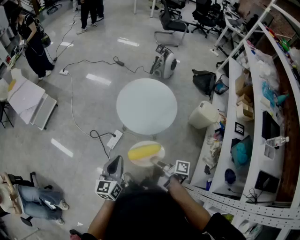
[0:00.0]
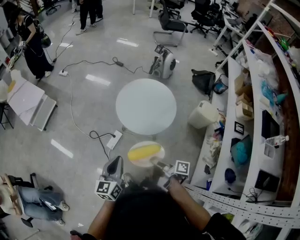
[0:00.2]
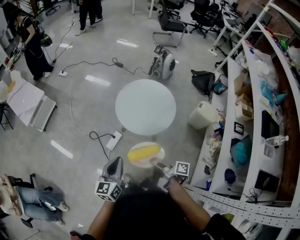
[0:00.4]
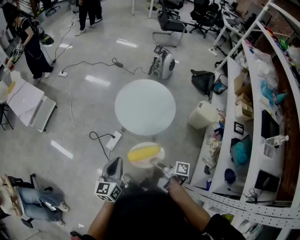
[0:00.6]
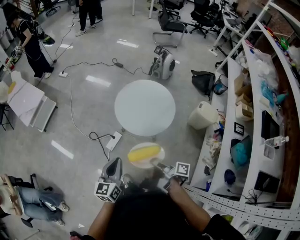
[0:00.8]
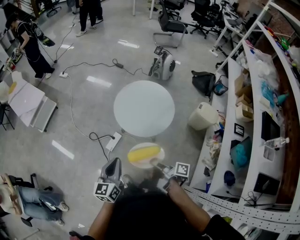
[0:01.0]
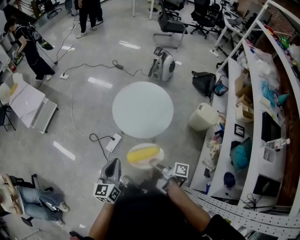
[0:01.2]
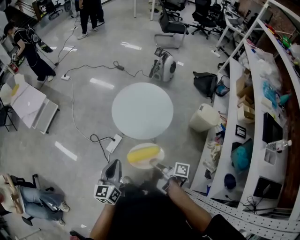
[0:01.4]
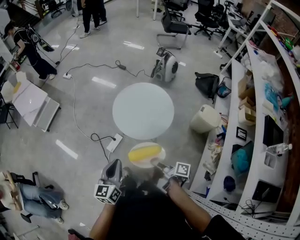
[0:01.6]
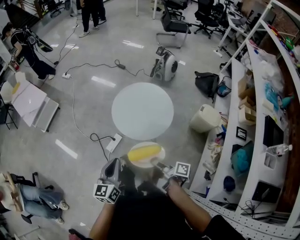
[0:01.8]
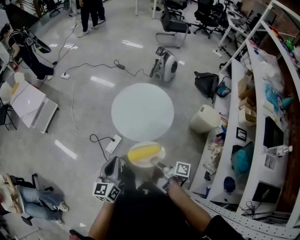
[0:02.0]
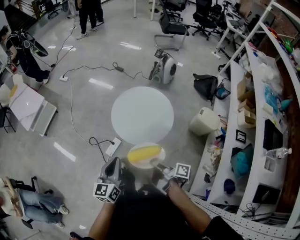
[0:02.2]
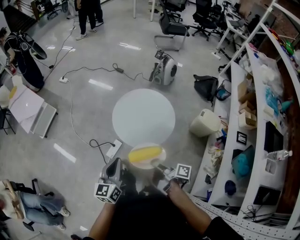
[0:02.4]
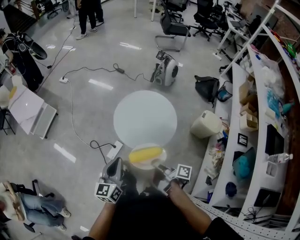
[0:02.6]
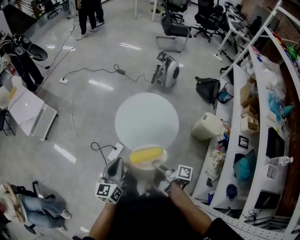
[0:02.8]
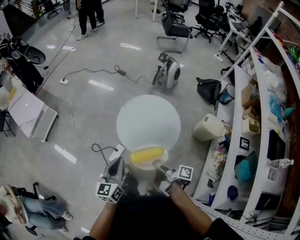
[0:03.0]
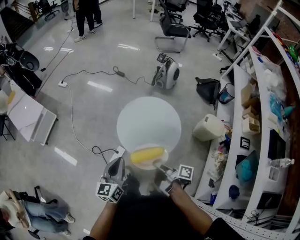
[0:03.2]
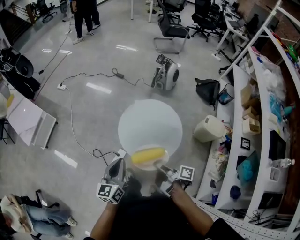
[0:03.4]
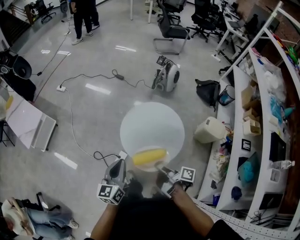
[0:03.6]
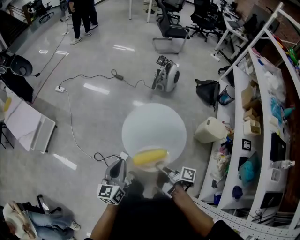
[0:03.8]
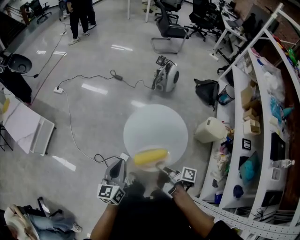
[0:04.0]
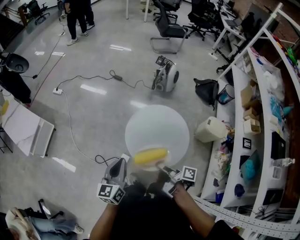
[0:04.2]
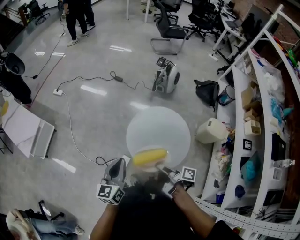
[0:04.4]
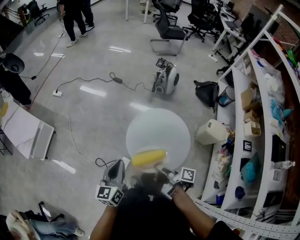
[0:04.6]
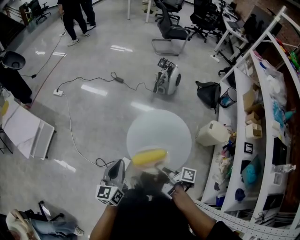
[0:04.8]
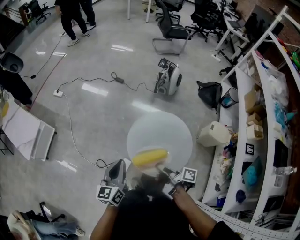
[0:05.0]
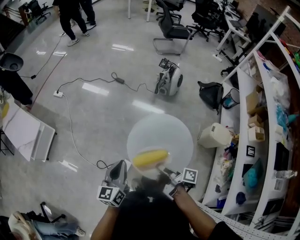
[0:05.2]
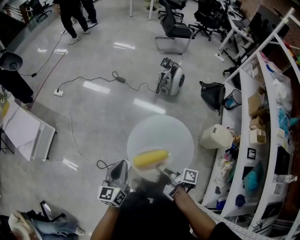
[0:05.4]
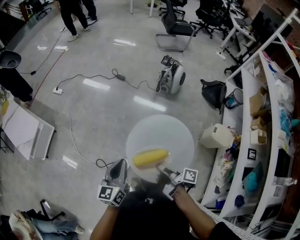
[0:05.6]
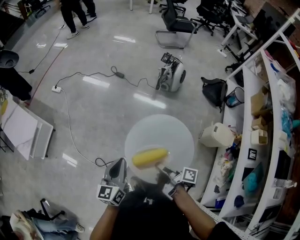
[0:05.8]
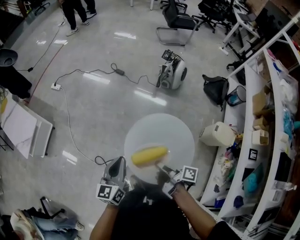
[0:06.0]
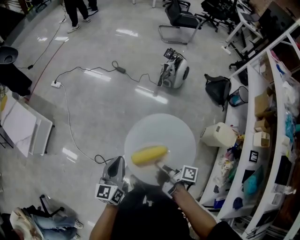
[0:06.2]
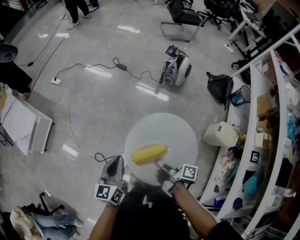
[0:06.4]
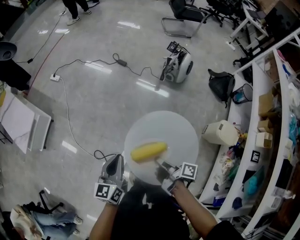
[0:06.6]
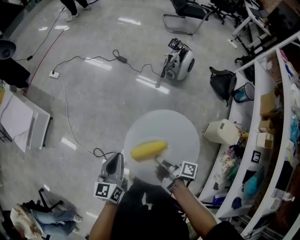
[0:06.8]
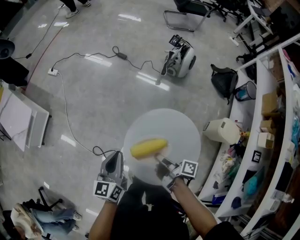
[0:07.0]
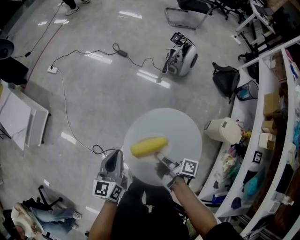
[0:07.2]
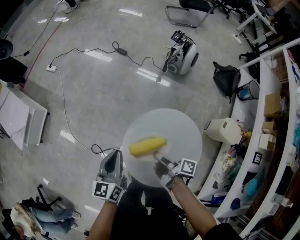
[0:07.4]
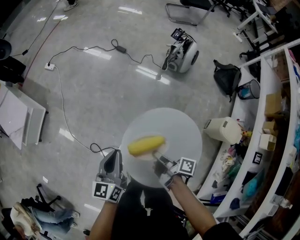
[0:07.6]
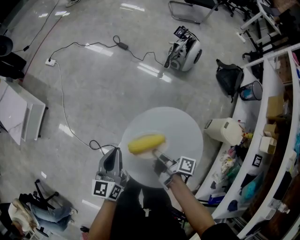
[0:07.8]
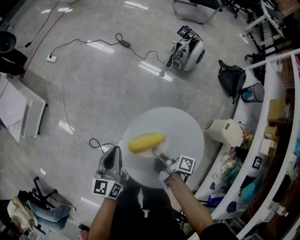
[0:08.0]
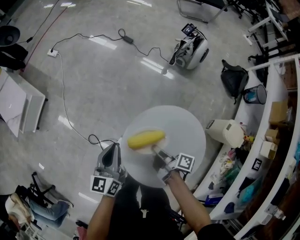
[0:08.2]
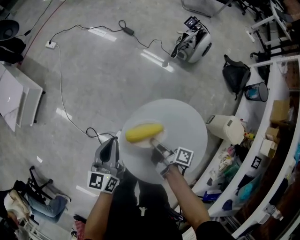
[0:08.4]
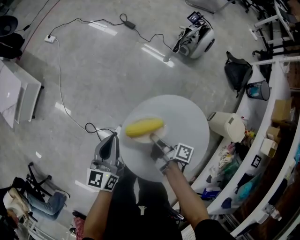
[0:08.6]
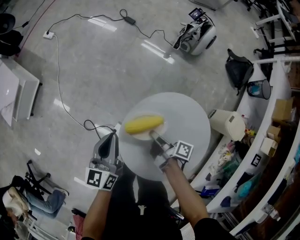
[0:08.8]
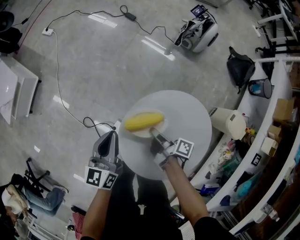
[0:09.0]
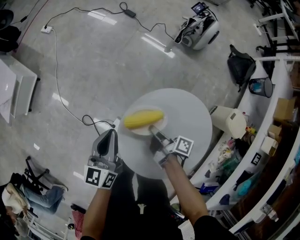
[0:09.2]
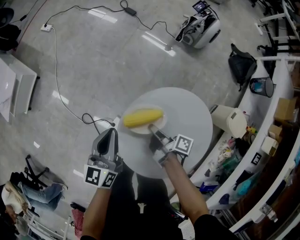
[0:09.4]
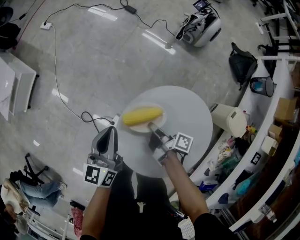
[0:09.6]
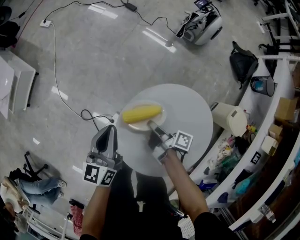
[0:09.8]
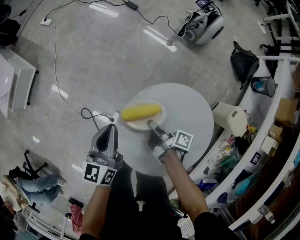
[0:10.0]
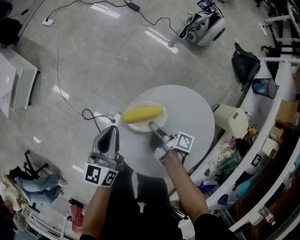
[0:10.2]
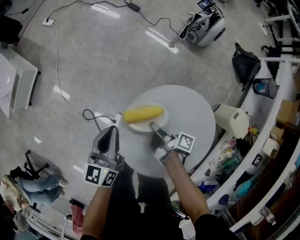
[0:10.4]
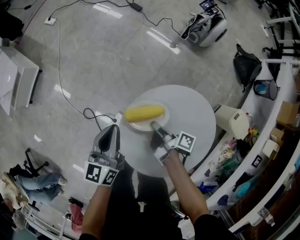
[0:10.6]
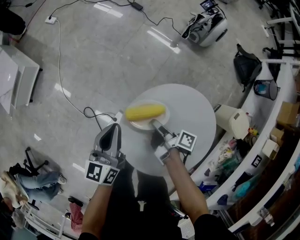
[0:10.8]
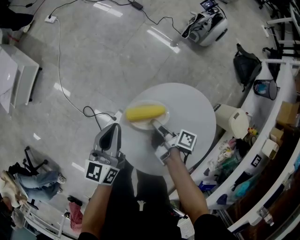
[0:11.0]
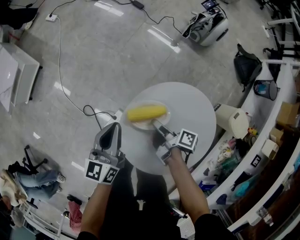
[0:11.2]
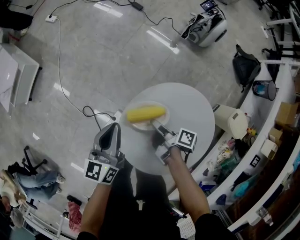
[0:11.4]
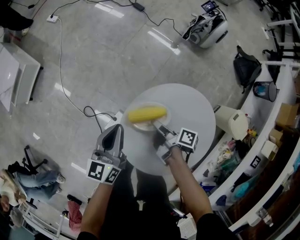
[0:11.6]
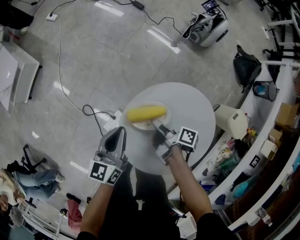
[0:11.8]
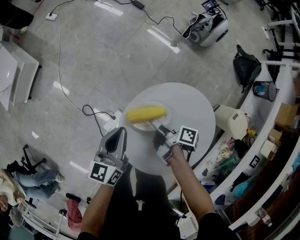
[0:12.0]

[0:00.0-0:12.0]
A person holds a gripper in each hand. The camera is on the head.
0:00.0 to 0:01.6: The left gripper ends up about 5 cm from where it was.
0:01.6 to 0:03.0: The left gripper moves about 15 cm.
0:03.0 to 0:04.4: The left gripper shifts by roughly 15 cm.
0:04.4 to 0:06.0: The left gripper shifts by some 15 cm.
0:06.0 to 0:07.6: The left gripper travels downward by about 10 cm.
0:07.6 to 0:09.0: The left gripper goes some 5 cm downward.

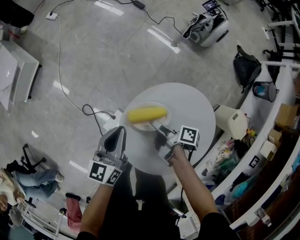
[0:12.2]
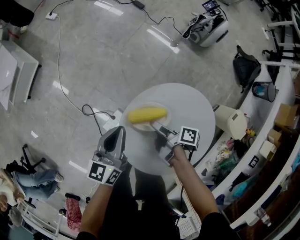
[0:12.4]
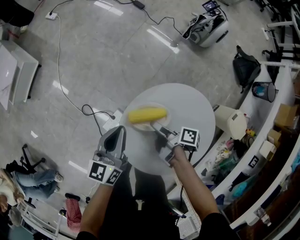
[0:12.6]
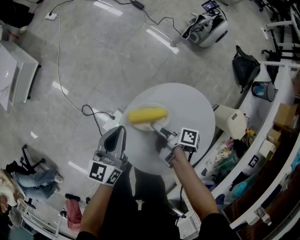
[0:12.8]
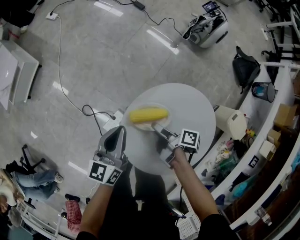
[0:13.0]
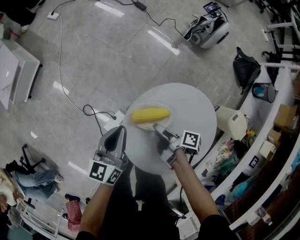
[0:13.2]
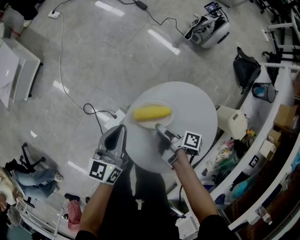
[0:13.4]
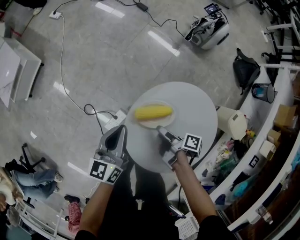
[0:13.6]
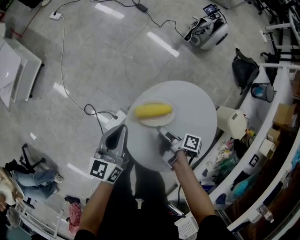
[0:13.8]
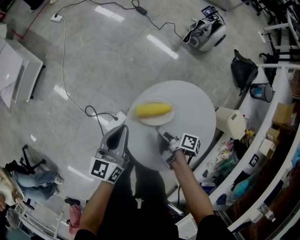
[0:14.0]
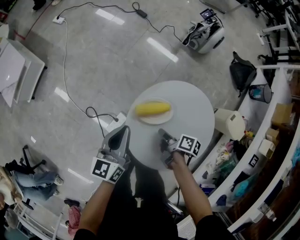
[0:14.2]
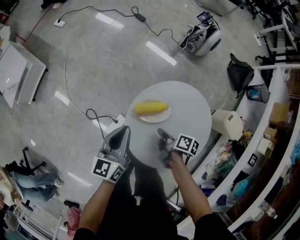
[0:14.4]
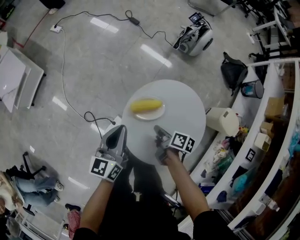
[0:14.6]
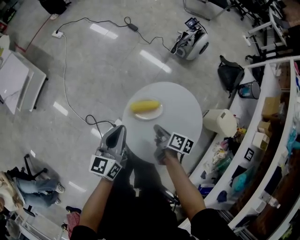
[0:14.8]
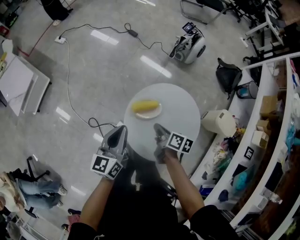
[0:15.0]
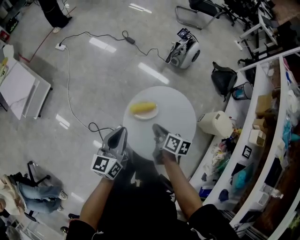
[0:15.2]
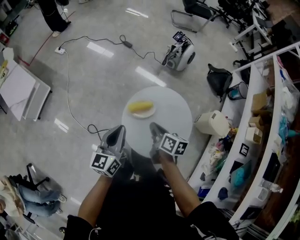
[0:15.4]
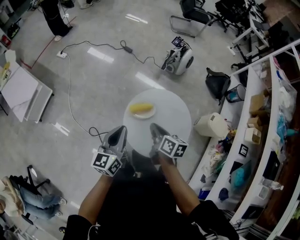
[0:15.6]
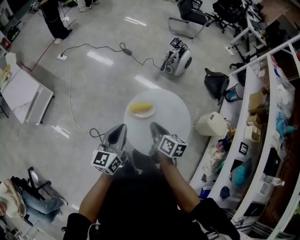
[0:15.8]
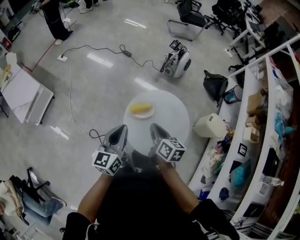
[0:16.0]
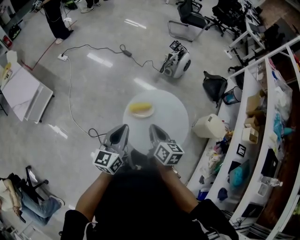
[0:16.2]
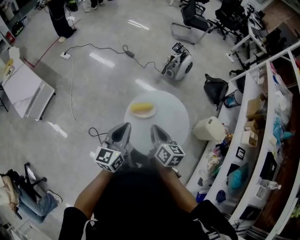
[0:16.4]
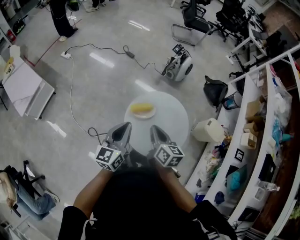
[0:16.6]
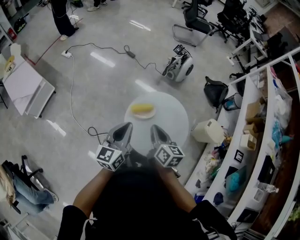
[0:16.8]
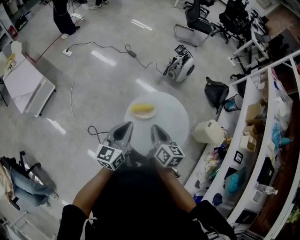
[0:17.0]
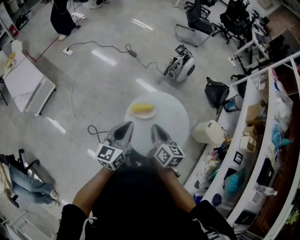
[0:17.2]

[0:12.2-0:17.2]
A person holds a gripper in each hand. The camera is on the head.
0:13.8 to 0:15.6: The left gripper goes about 20 cm upward.

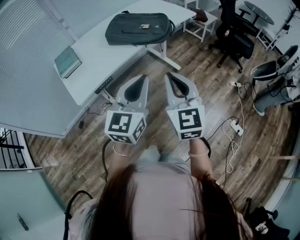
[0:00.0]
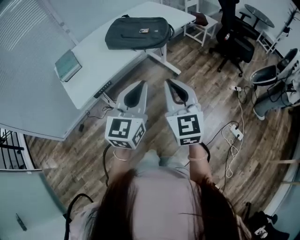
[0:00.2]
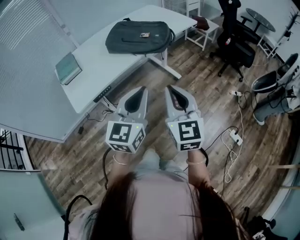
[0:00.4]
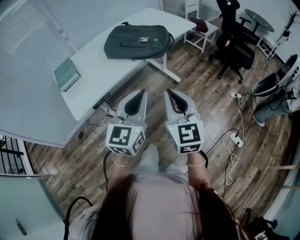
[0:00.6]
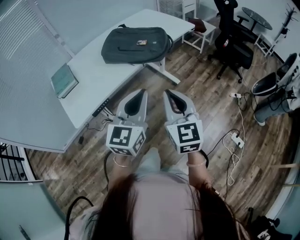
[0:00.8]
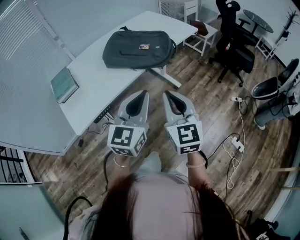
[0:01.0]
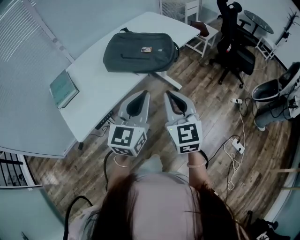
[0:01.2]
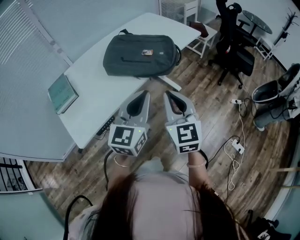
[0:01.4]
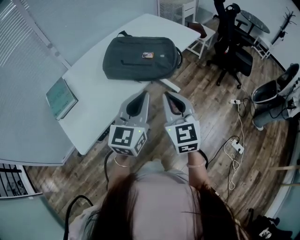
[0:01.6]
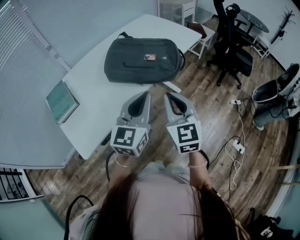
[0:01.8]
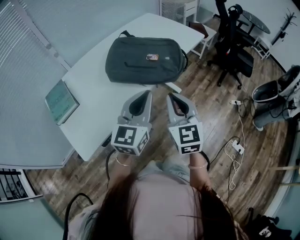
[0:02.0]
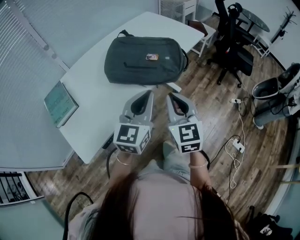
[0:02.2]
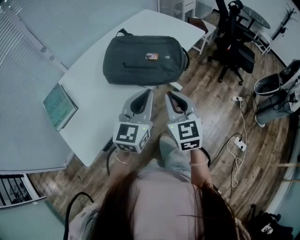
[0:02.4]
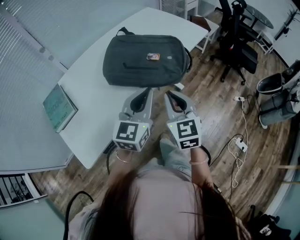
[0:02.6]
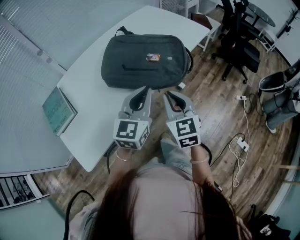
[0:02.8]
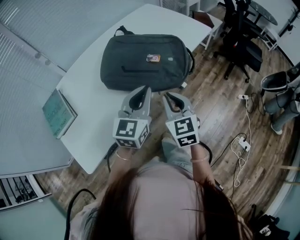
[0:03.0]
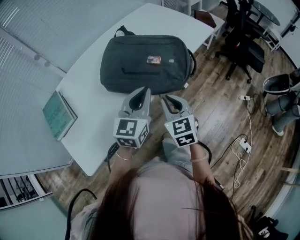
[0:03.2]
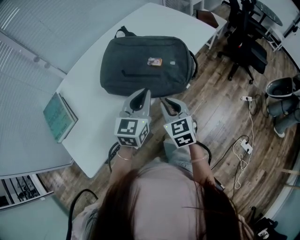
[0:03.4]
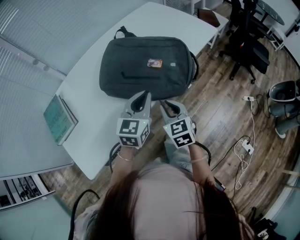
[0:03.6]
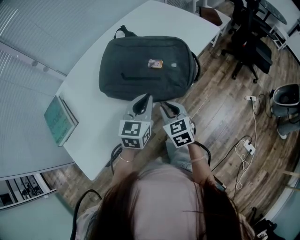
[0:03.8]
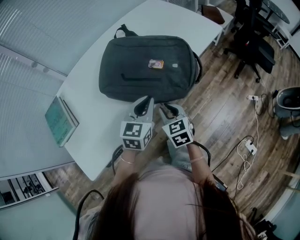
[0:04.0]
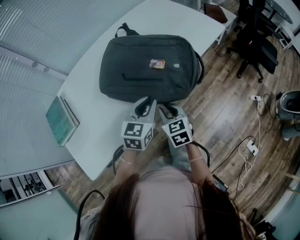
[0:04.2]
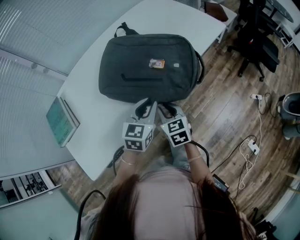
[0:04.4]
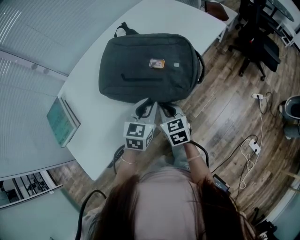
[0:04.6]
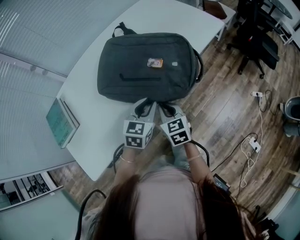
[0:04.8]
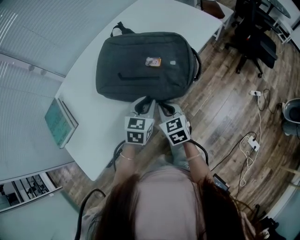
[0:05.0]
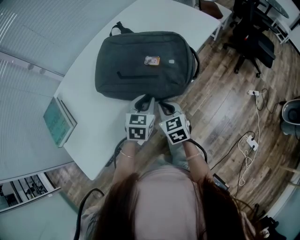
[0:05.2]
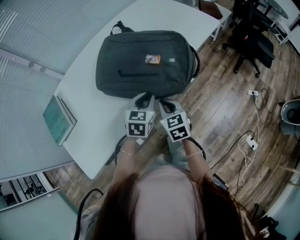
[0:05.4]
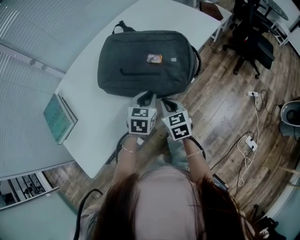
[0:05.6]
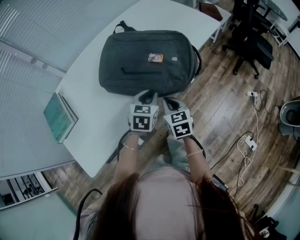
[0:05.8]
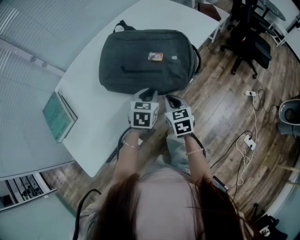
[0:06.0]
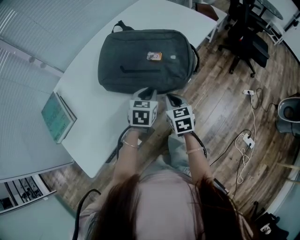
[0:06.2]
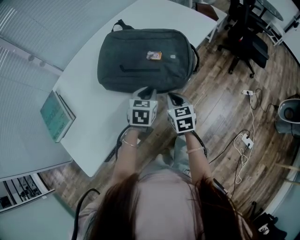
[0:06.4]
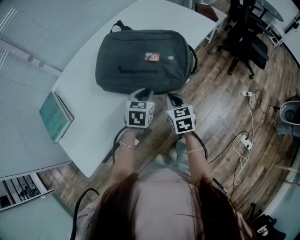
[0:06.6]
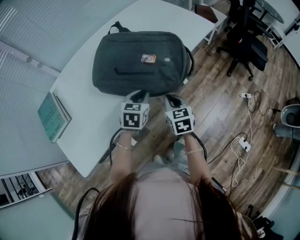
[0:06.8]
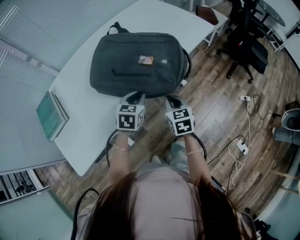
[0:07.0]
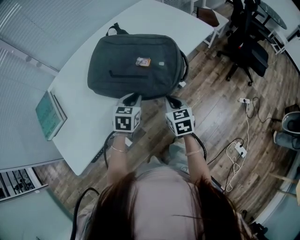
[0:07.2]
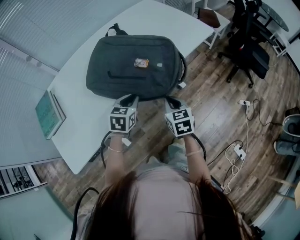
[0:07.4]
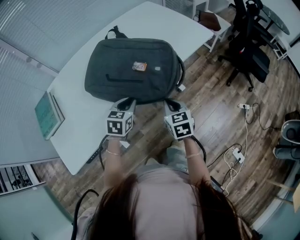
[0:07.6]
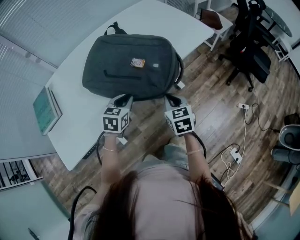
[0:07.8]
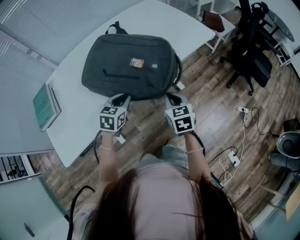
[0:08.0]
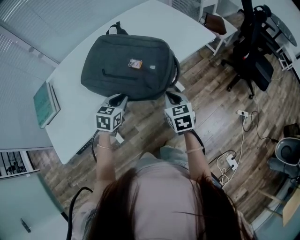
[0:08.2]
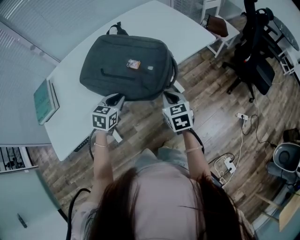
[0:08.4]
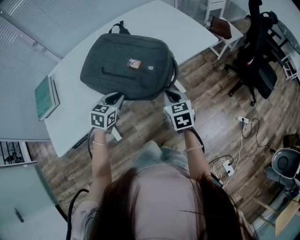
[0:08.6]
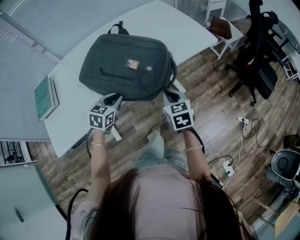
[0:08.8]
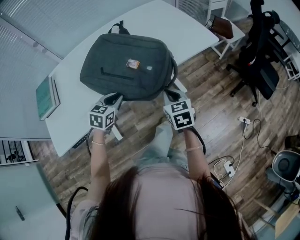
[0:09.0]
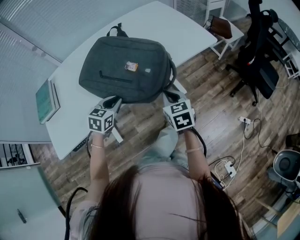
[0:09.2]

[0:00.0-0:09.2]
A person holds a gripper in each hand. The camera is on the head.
0:00.0 to 0:01.6: Both grippers move forward, approximately 20 cm.
0:01.6 to 0:03.0: The two grippers go roughly 15 cm forward and downward.
0:03.0 to 0:04.6: The grippers both shift downward and forward by roughly 15 cm. The left gripper rotates about 20 degrees, while the right gripper rotates about 20 degrees.
0:04.6 to 0:06.2: The grippers move only a little.
0:06.2 to 0:07.6: The right gripper heads to the right, covering some 10 cm.
0:07.6 to 0:09.2: The right gripper shifts about 5 cm to the right.
